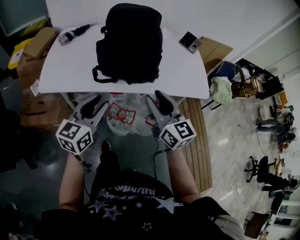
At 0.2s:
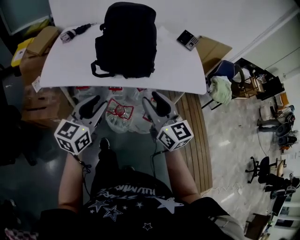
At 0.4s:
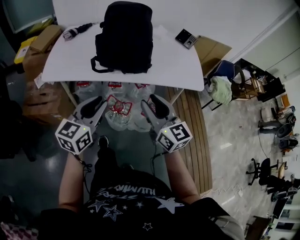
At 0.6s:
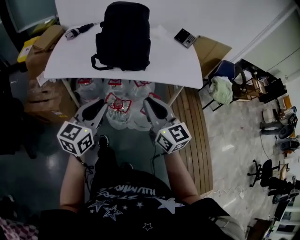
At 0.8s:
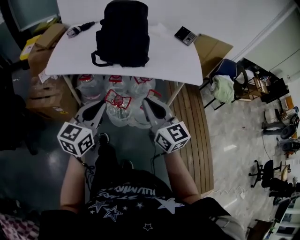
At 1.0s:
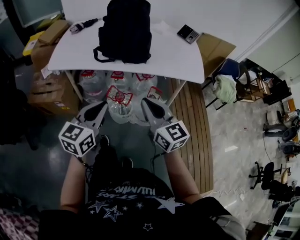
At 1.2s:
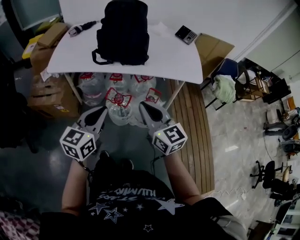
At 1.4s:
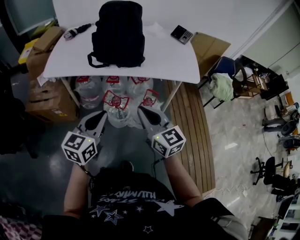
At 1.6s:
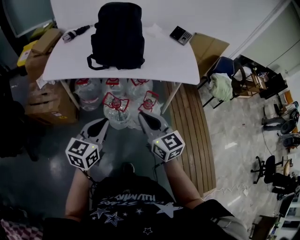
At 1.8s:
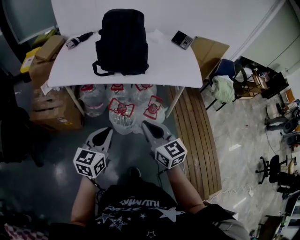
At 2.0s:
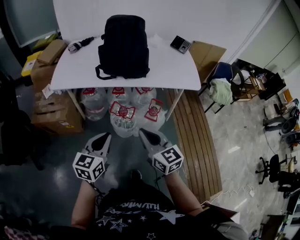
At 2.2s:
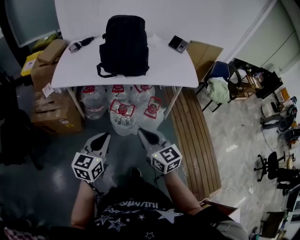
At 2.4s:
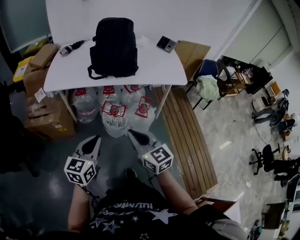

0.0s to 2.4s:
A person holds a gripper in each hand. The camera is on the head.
0.0s to 1.2s: The right gripper is displaced backward by roughly 20 cm, and closes up. Meanwhile the left gripper is displaced backward and to the right by approximately 20 cm, and closes up.
1.2s to 2.4s: Both grippers move backward and to the left, roughly 15 cm.

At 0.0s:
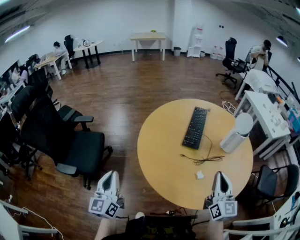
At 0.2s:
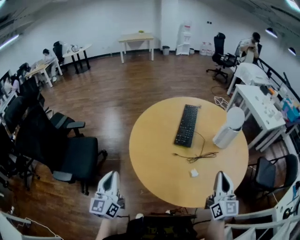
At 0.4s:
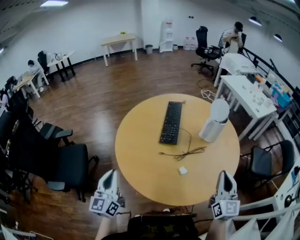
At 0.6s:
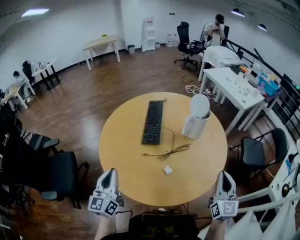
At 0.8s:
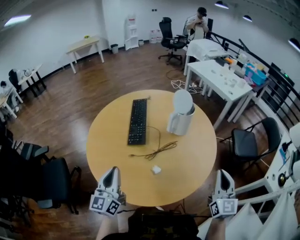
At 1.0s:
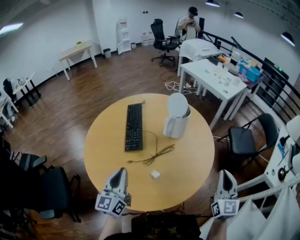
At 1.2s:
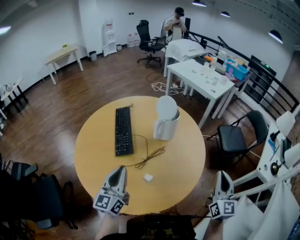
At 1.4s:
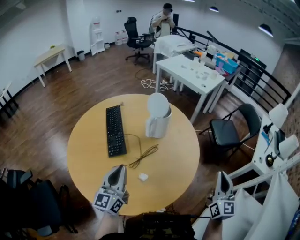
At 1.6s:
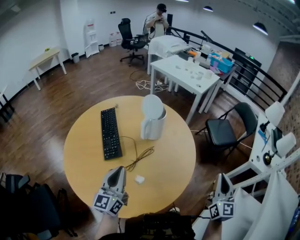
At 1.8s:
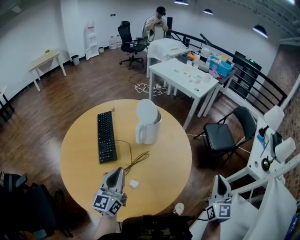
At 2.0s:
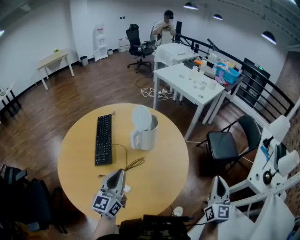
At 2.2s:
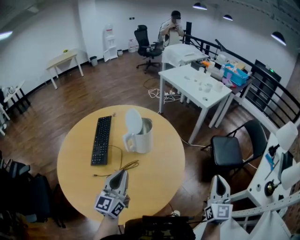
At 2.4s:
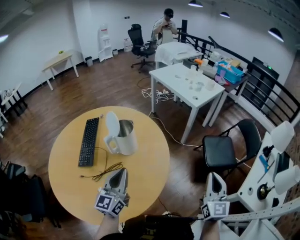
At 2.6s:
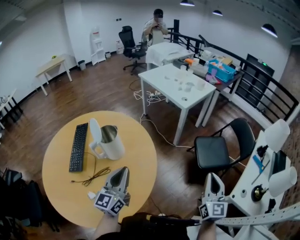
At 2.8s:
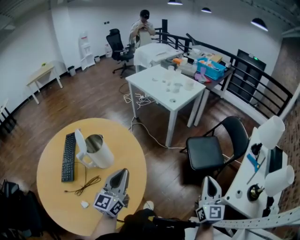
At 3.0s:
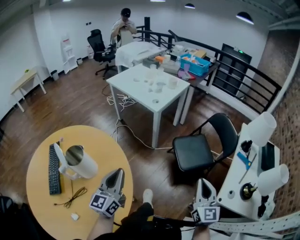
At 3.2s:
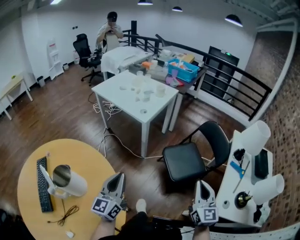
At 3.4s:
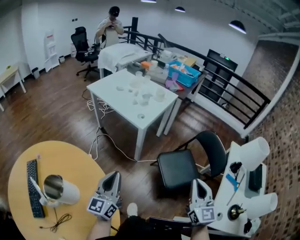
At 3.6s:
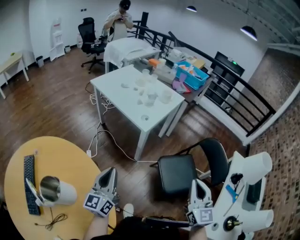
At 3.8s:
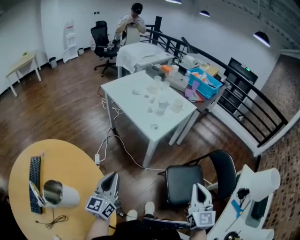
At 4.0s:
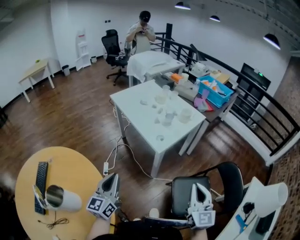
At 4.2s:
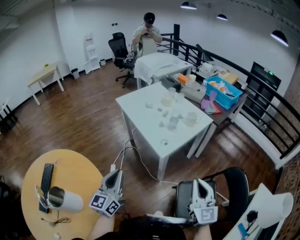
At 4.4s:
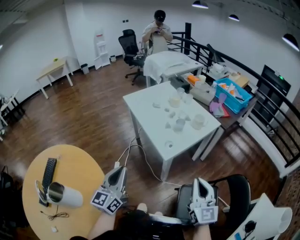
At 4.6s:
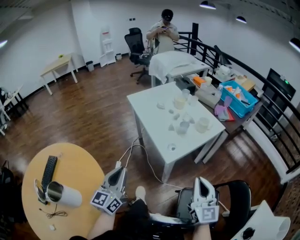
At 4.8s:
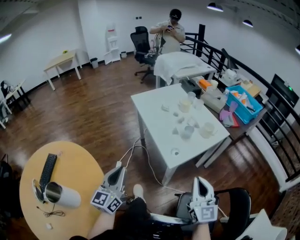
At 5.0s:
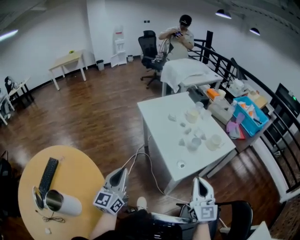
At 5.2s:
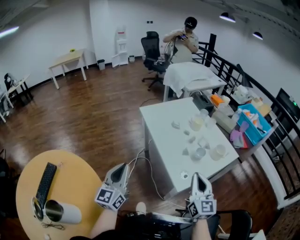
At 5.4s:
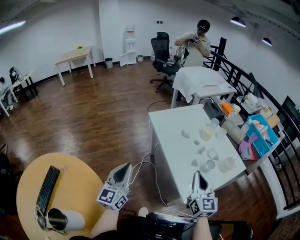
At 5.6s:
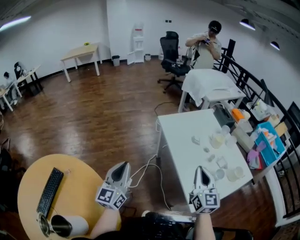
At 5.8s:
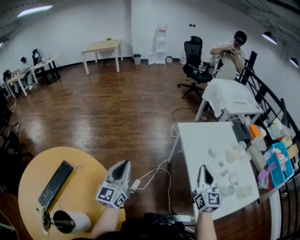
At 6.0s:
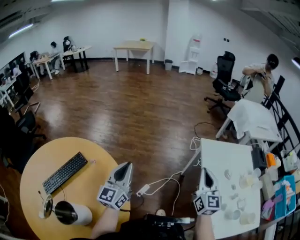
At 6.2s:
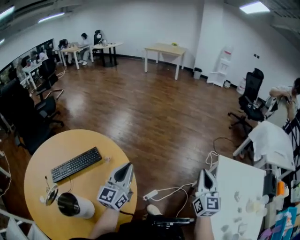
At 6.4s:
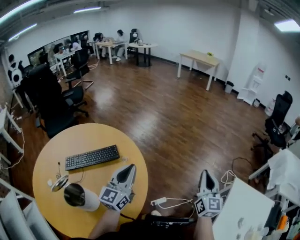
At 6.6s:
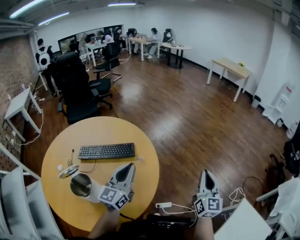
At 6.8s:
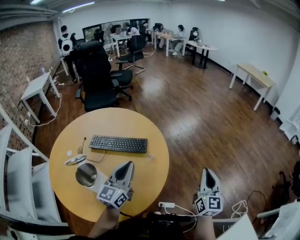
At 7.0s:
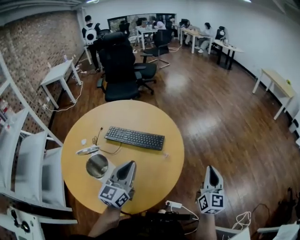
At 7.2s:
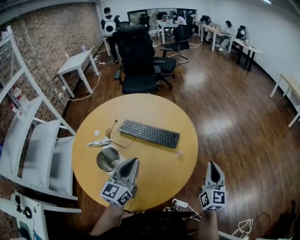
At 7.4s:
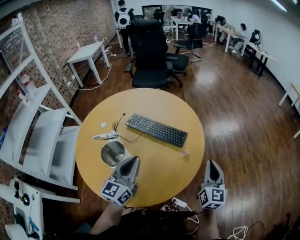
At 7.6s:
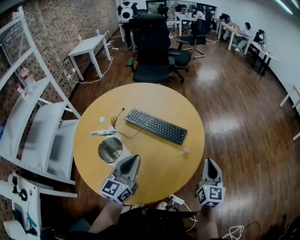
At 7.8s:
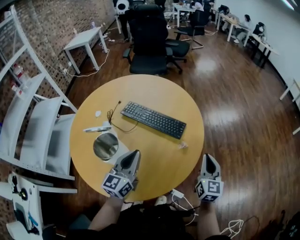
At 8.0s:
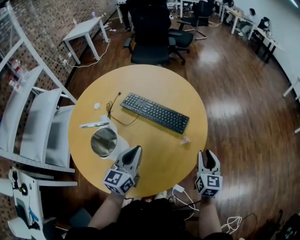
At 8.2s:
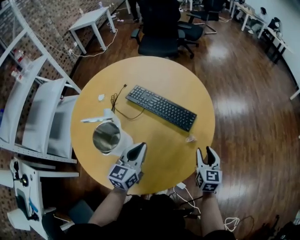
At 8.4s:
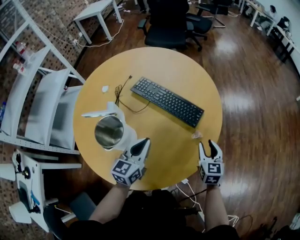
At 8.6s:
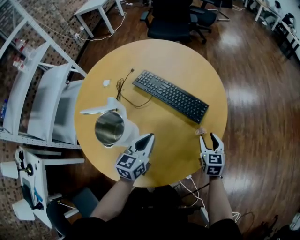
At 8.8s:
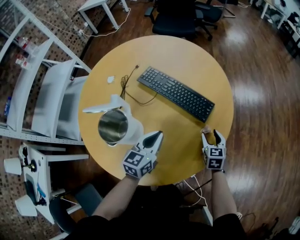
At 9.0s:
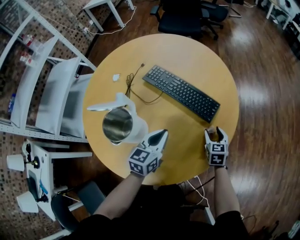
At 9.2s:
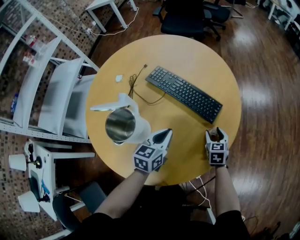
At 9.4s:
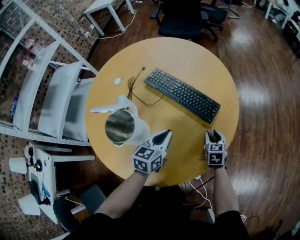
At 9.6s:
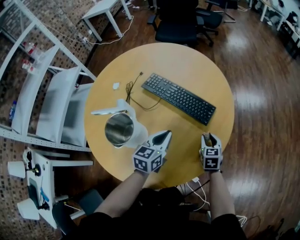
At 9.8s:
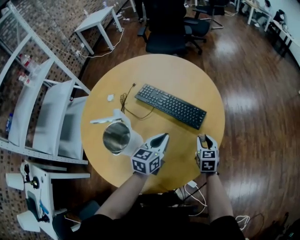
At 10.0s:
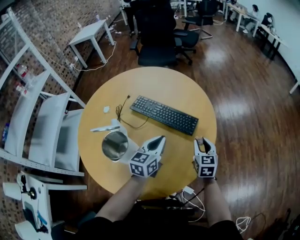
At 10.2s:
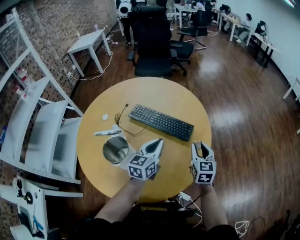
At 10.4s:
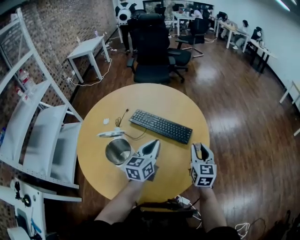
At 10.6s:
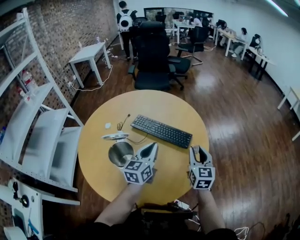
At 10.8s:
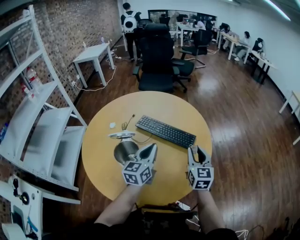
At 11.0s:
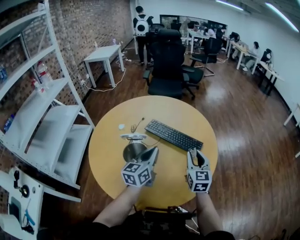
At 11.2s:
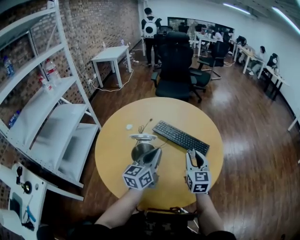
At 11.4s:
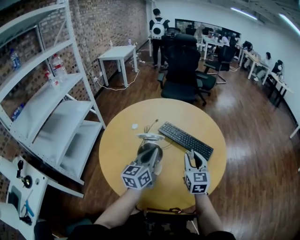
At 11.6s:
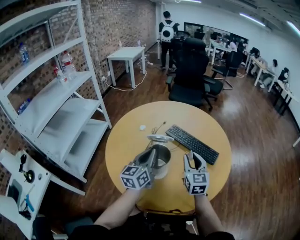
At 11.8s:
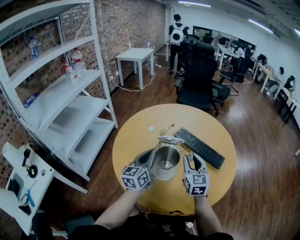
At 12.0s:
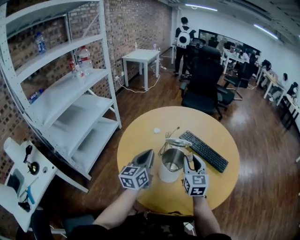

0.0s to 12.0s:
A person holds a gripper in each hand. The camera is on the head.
0.0s to 1.6s: The left gripper moves some 40 cm, and swivels approximately 50 degrees. Meanwhile the right gripper changes place by roughly 30 cm, and rotates about 40 degrees.
1.6s to 3.0s: The two grippers travel together, to the right and forward, approximately 50 cm.
3.0s to 4.4s: Both grippers move forward, roughly 40 cm. The right gripper rotates some 20 degrees.
4.4s to 6.0s: The pair of grippers is taken some 60 cm. The left gripper turns by approximately 40 degrees. Meanwhile the right gripper turns by about 30 degrees.
6.0s to 7.6s: The left gripper moves approximately 30 cm, and turns by approximately 80 degrees. Meanwhile the right gripper moves about 50 cm, and swivels about 80 degrees.
7.6s to 9.0s: The left gripper shifts about 15 cm downward and forward, and rotates some 30 degrees. The right gripper is displaced downward and forward by some 25 cm, tips its fingers downward by about 30 degrees, and opens its fingers.
9.0s to 10.4s: The left gripper travels upward by approximately 10 cm. The right gripper heads upward, covering approximately 20 cm, turns by approximately 30 degrees, and closes its fingers.
10.4s to 12.0s: Both grippers move to the left, approximately 30 cm. The left gripper turns by some 30 degrees. Meanwhile the right gripper turns by roughly 30 degrees.

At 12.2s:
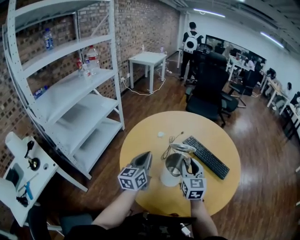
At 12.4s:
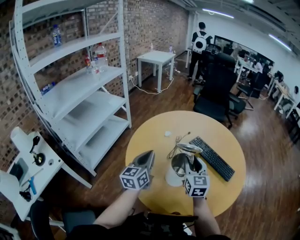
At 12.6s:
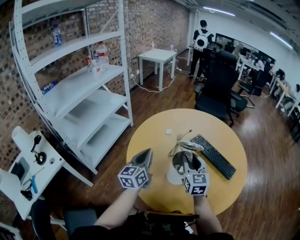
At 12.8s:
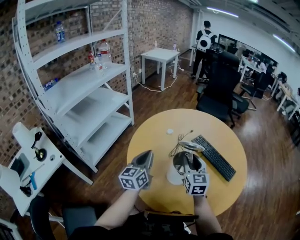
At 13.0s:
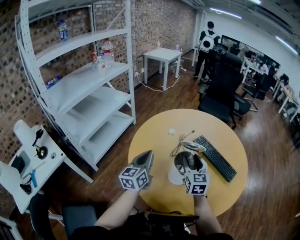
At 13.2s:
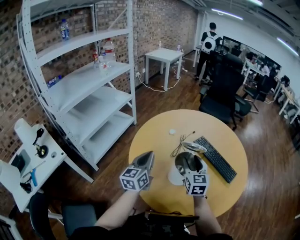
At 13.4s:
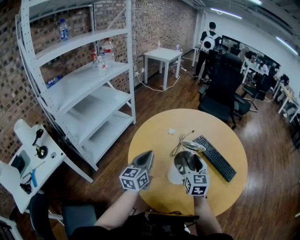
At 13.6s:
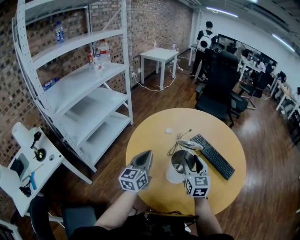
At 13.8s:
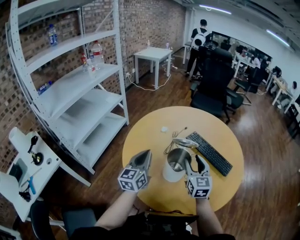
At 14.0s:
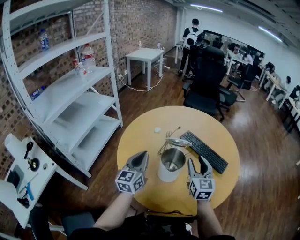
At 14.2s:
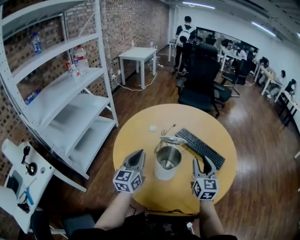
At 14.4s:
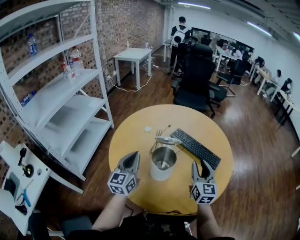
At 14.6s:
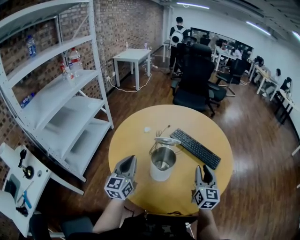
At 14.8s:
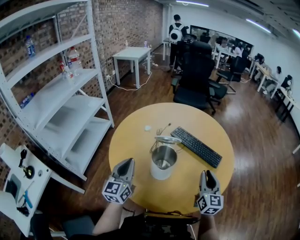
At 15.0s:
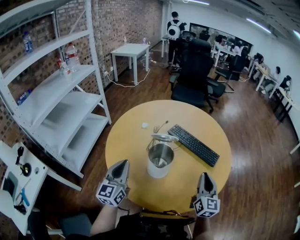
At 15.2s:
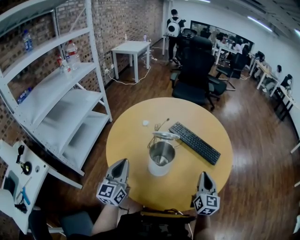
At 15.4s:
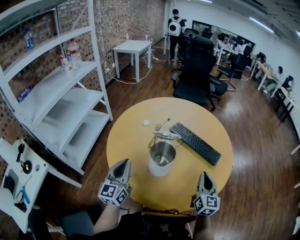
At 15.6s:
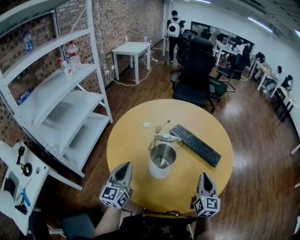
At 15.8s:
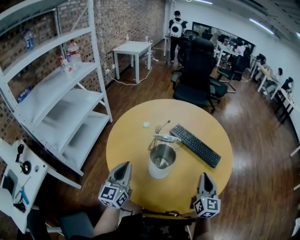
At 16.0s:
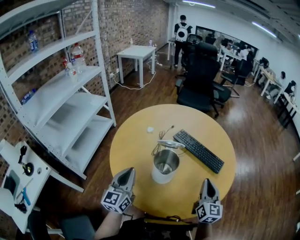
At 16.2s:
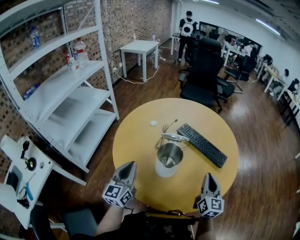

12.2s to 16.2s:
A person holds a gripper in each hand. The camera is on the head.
12.2s to 13.6s: The right gripper opens its fingers.
13.6s to 14.8s: The right gripper is displaced to the right and backward by about 20 cm, turns by some 20 degrees, and closes.
14.8s to 16.2s: There are only small adjustments of the grippers.

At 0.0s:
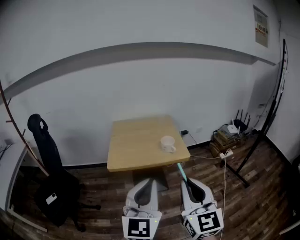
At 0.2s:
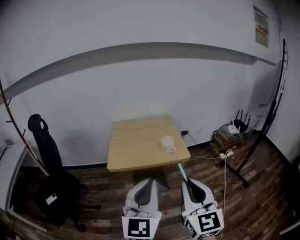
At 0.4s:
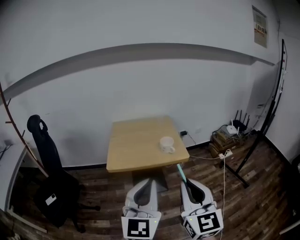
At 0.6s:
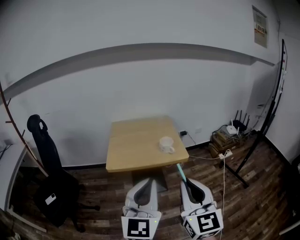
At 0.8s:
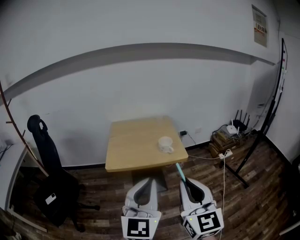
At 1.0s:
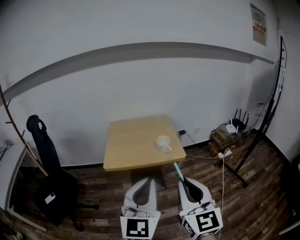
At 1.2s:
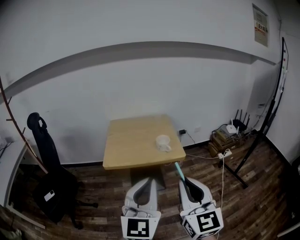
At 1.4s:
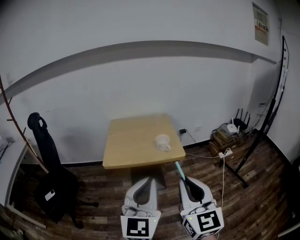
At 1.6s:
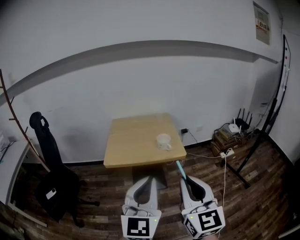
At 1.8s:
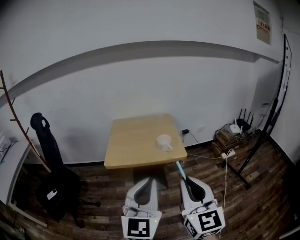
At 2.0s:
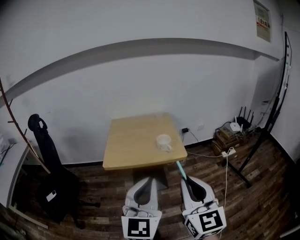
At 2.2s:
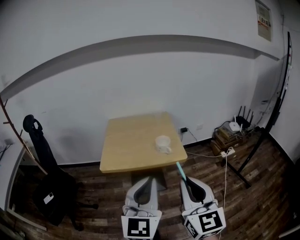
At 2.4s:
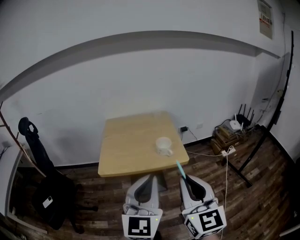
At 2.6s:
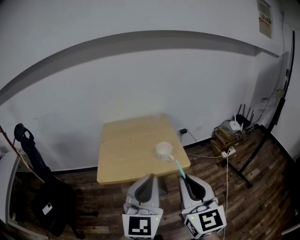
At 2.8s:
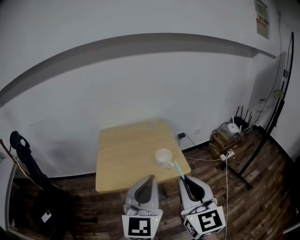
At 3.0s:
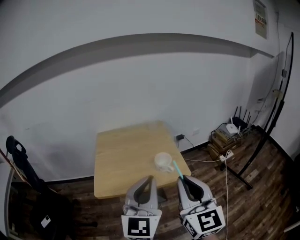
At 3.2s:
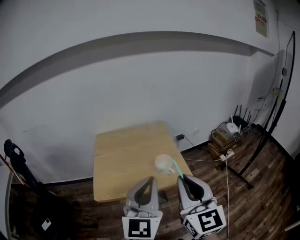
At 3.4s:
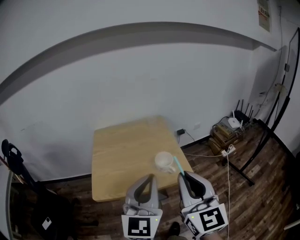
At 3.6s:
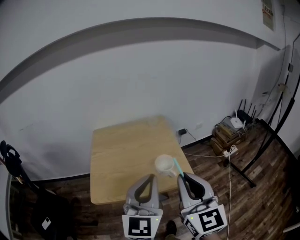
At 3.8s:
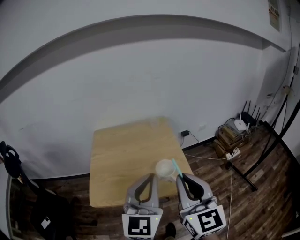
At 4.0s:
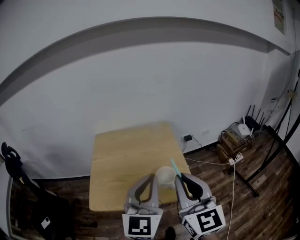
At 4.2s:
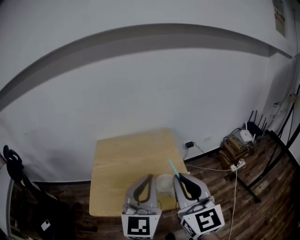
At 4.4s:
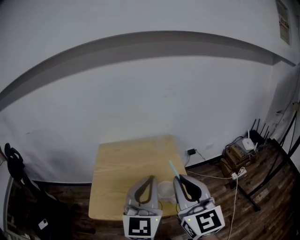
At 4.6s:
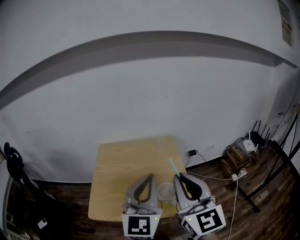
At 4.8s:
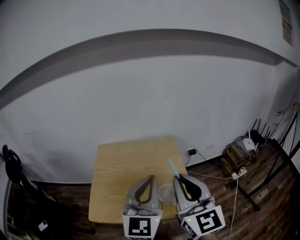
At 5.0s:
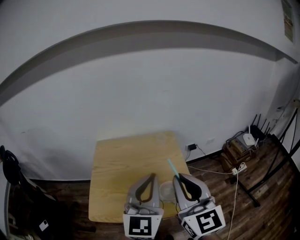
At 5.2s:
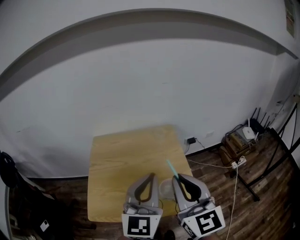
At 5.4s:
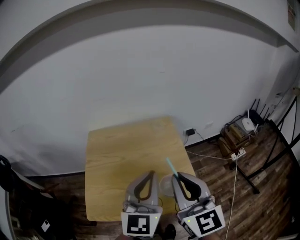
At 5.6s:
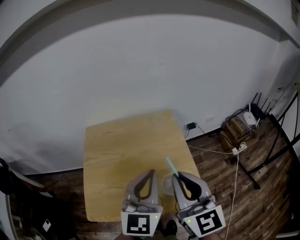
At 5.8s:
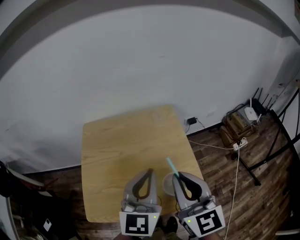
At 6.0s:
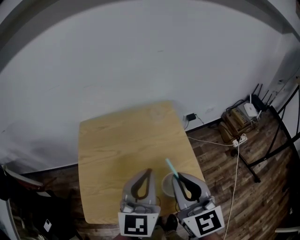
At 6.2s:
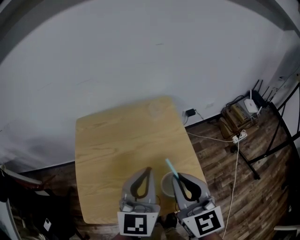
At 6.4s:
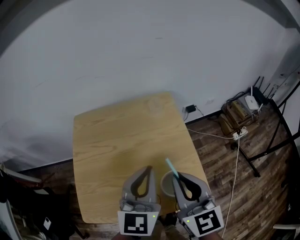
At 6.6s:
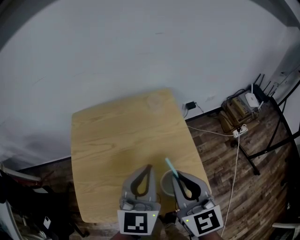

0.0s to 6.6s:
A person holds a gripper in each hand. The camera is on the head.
0.0s to 1.6s: The left gripper is displaced to the right by some 5 cm.
1.6s to 3.2s: Both grippers move forward, some 25 cm.
3.2s to 5.0s: The grippers both shift forward by roughly 20 cm.
5.0s to 6.6s: Both grippers travel together downward and forward, about 20 cm. The right gripper rotates approximately 20 degrees.
